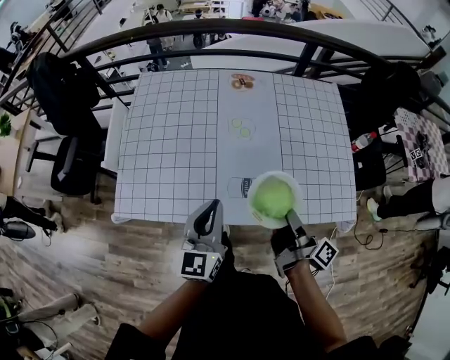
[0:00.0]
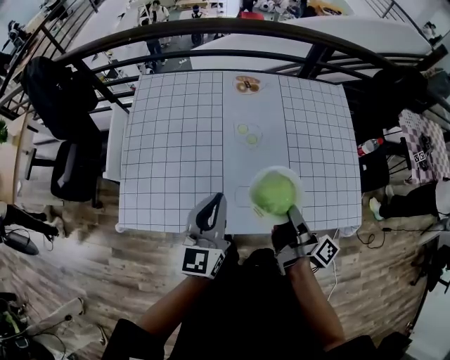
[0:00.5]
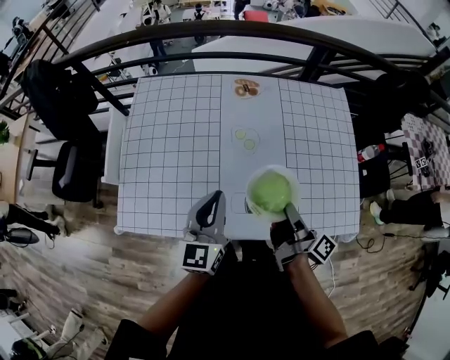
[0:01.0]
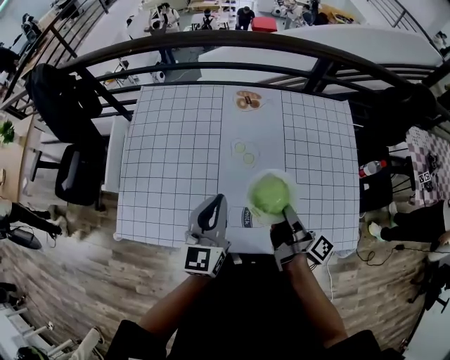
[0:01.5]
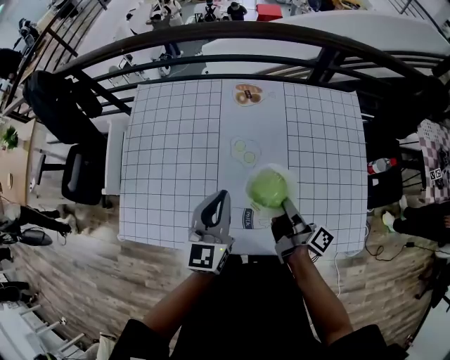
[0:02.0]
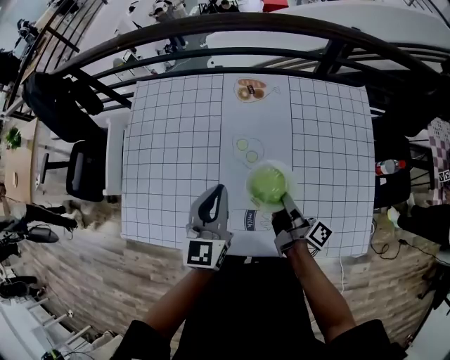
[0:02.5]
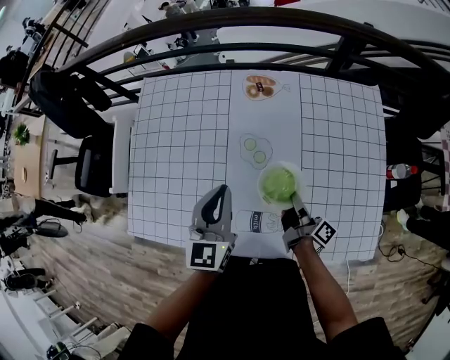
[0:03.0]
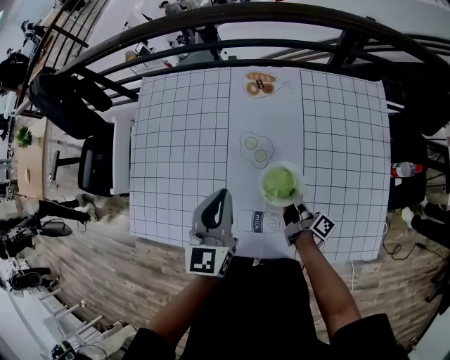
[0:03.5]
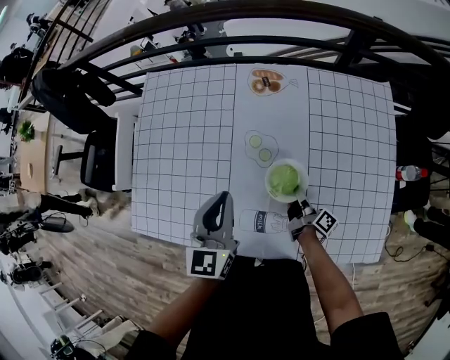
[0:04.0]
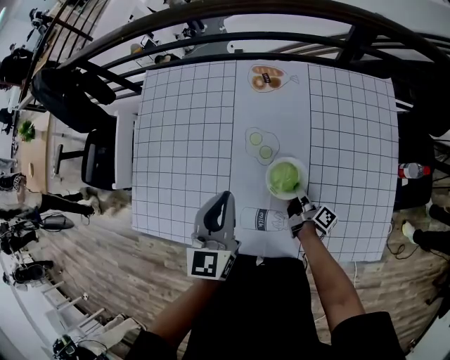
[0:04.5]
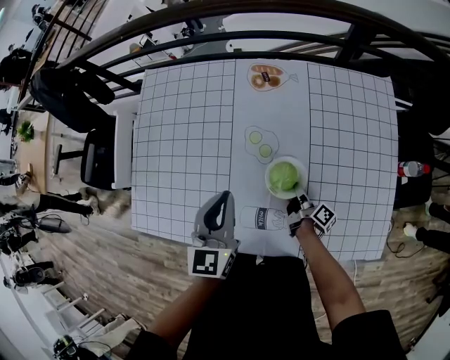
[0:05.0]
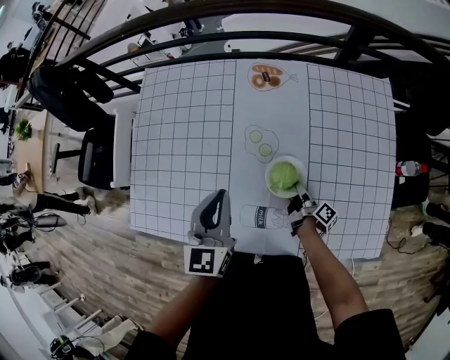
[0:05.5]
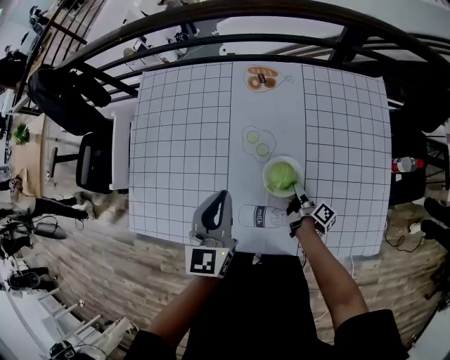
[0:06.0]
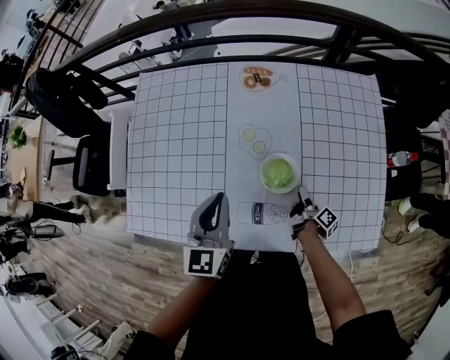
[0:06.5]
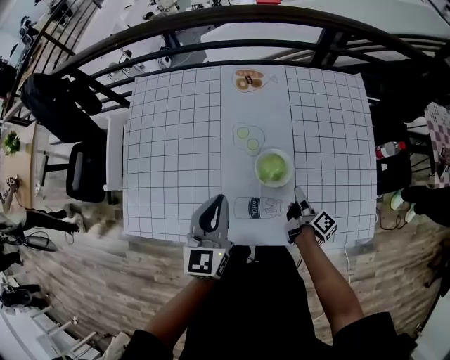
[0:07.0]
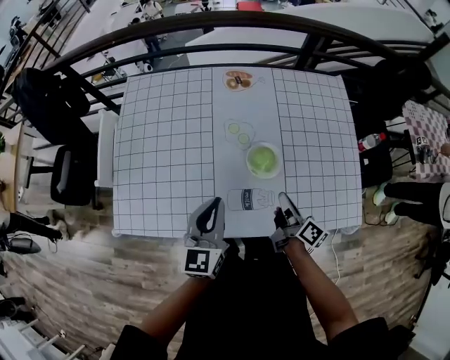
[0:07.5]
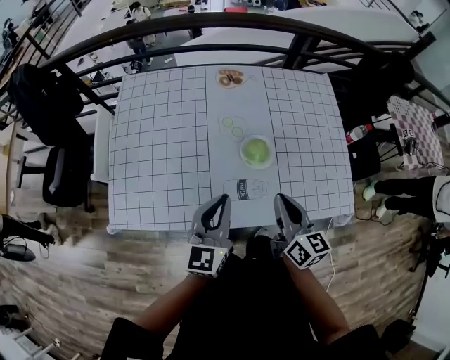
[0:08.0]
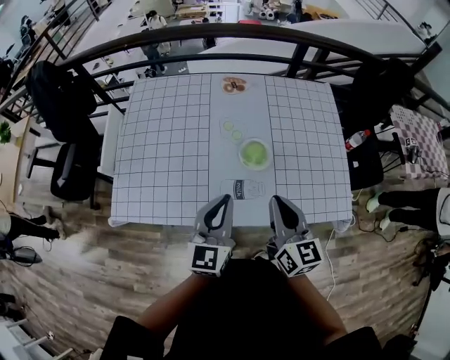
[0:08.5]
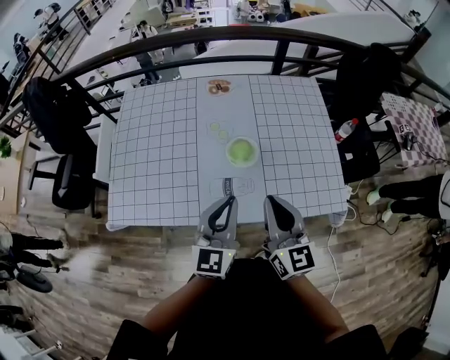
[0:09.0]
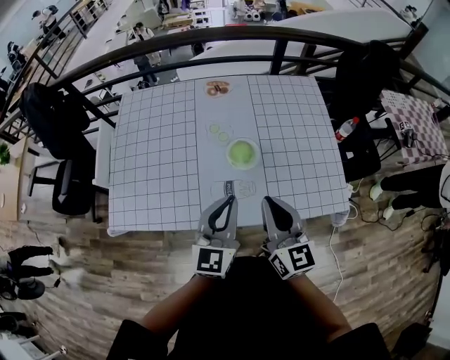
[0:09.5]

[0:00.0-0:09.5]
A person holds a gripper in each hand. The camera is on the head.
0:00.0 to 0:02.0: The left gripper ends up approximately 20 cm from where it was.
0:05.5 to 0:07.5: The left gripper shifts by approximately 10 cm.
0:07.5 to 0:09.5: The left gripper ends up roughly 15 cm from where it was.

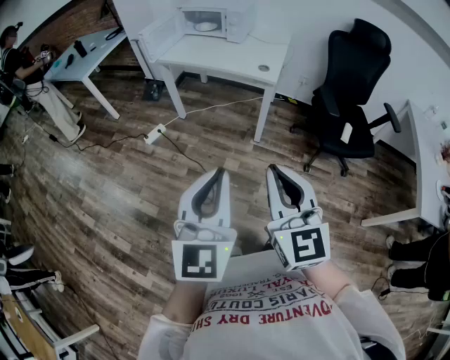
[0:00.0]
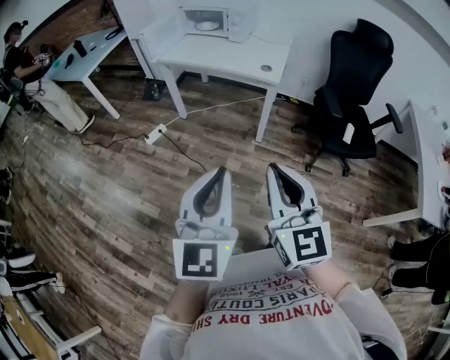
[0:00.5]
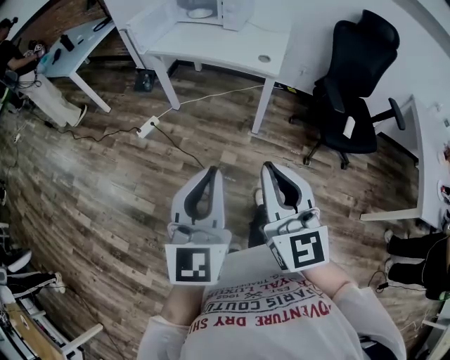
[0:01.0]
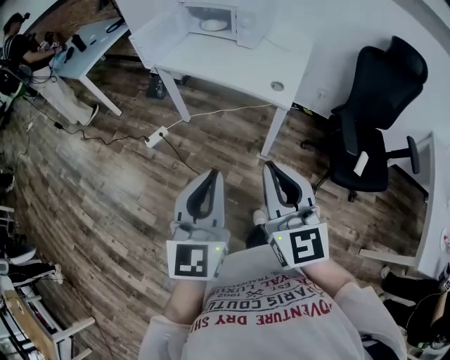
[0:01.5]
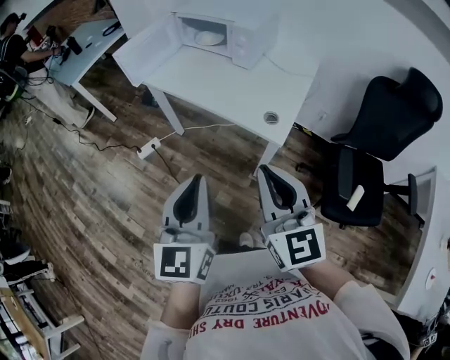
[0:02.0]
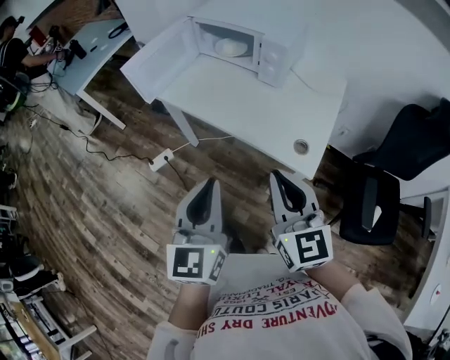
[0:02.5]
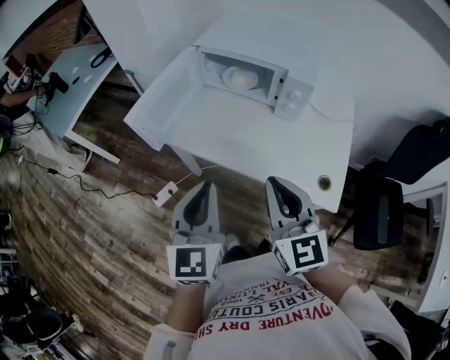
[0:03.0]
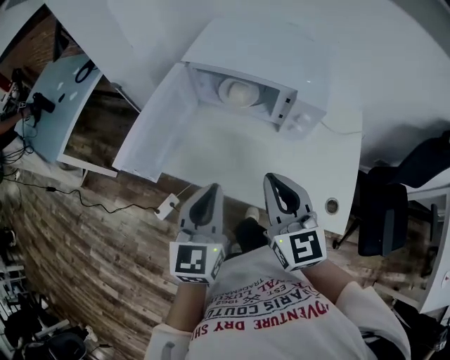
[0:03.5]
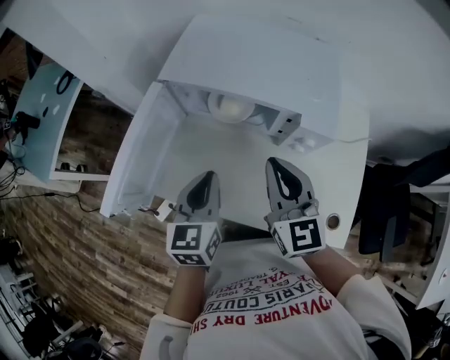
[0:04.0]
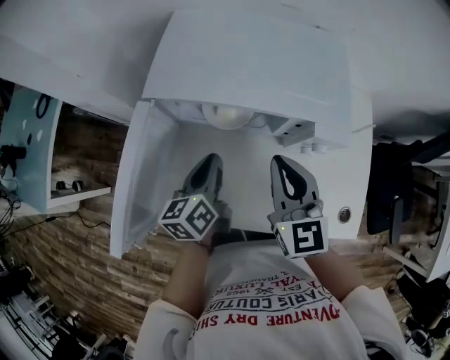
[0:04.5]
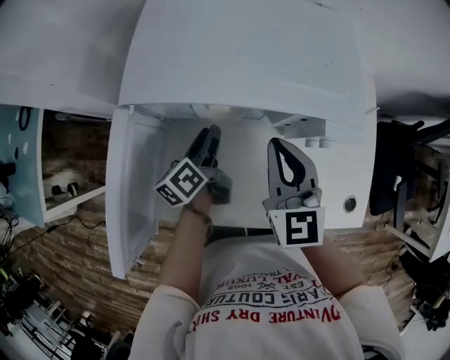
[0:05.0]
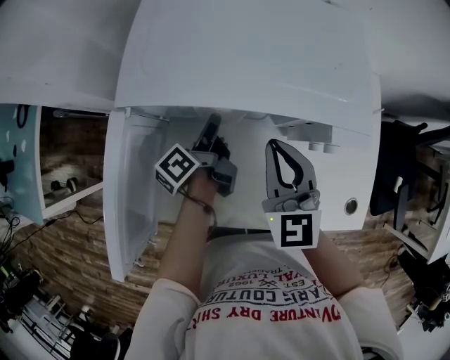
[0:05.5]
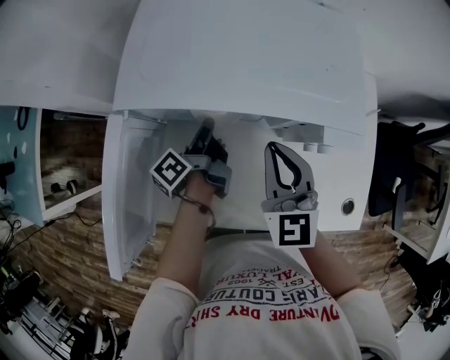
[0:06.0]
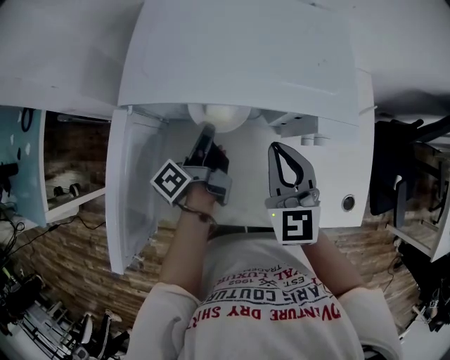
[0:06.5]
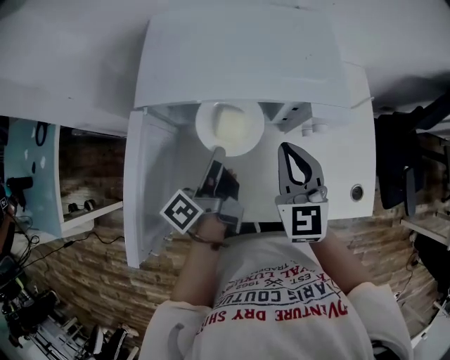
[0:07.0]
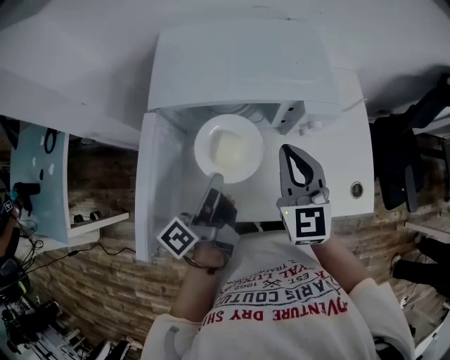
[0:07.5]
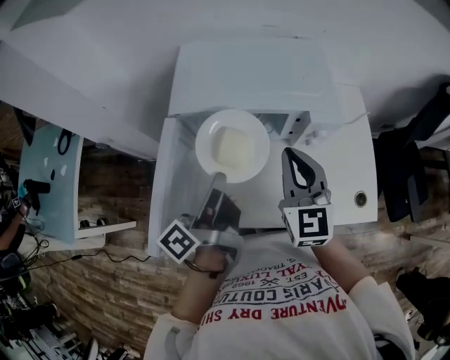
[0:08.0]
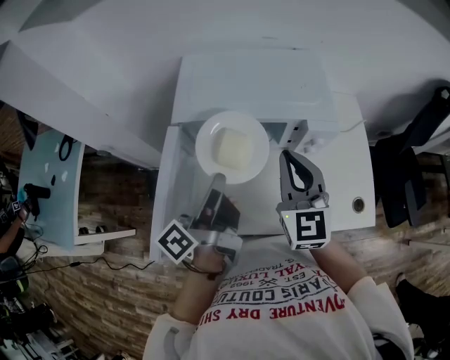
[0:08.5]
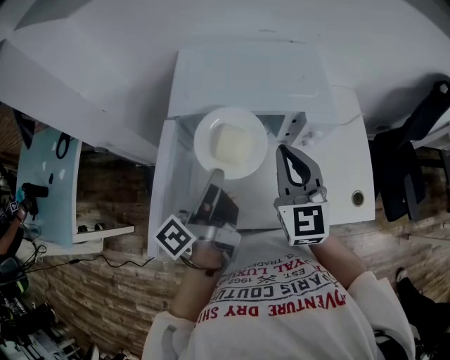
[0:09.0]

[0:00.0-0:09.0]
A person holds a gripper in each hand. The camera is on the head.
0:00.0 to 0:02.0: The pair of grippers is taken forward, about 40 cm.
0:02.0 to 0:04.5: The pair of grippers is taken approximately 70 cm. The right gripper rotates roughly 30 degrees; the left gripper changes its angle by approximately 40 degrees.
0:04.5 to 0:07.0: The left gripper travels downward and back again, about 10 cm each way, rotates approximately 40 degrees, and opens and closes again.
0:07.0 to 0:09.0: The left gripper goes roughly 15 cm upward and backward, while the right gripper moves upward, about 10 cm.

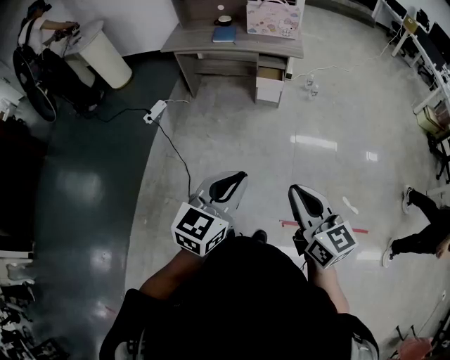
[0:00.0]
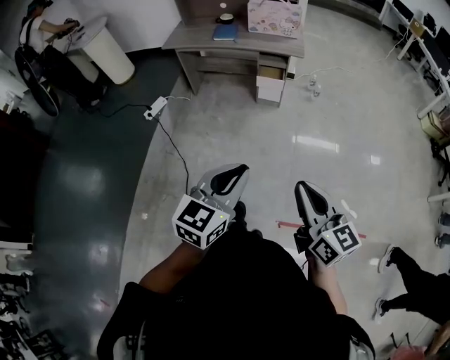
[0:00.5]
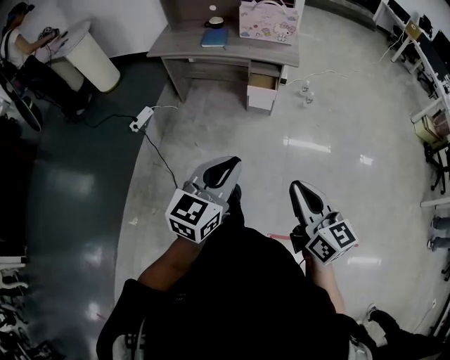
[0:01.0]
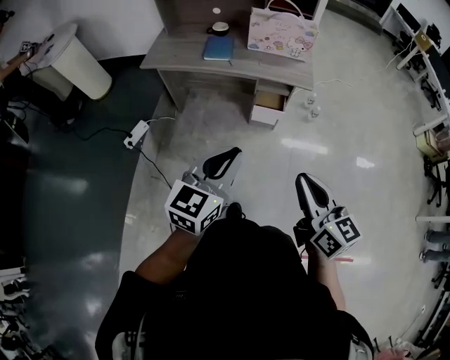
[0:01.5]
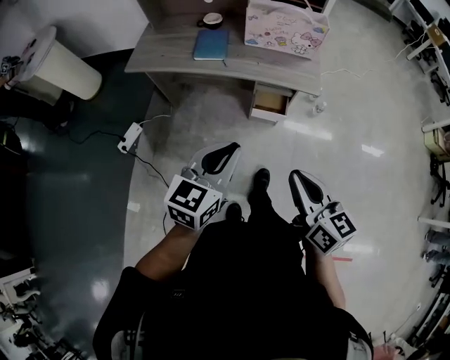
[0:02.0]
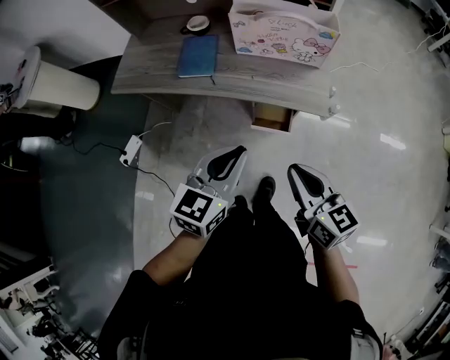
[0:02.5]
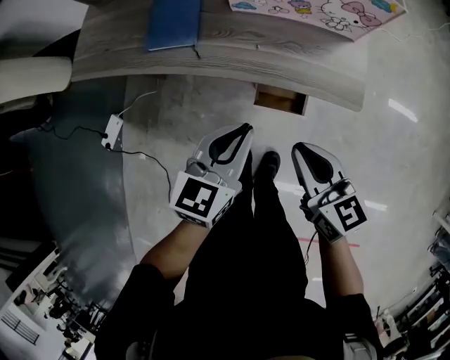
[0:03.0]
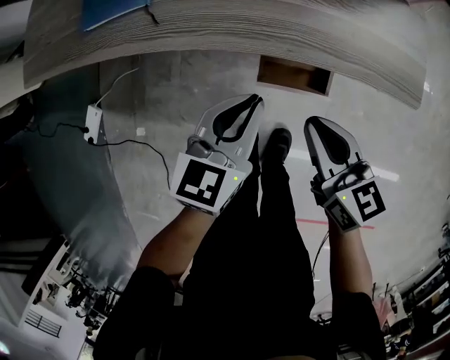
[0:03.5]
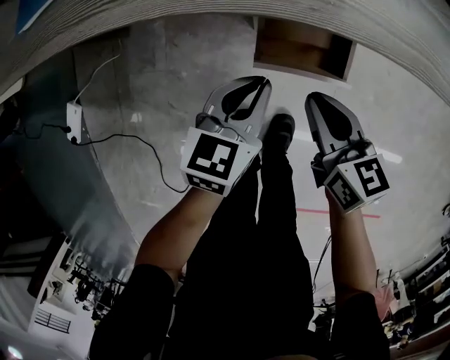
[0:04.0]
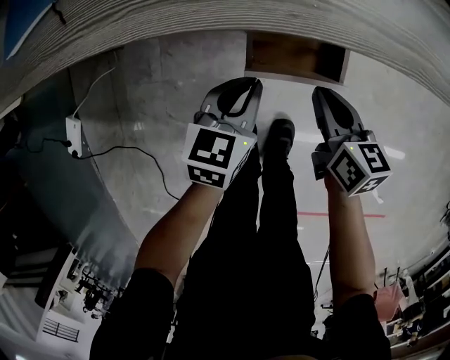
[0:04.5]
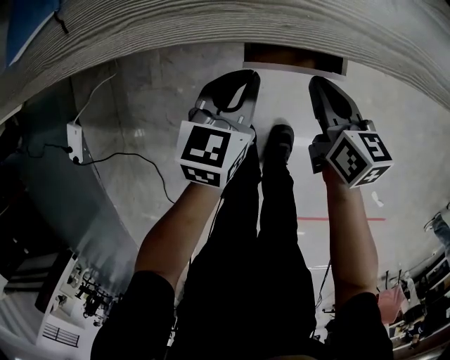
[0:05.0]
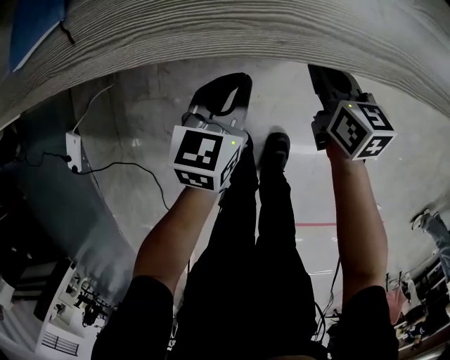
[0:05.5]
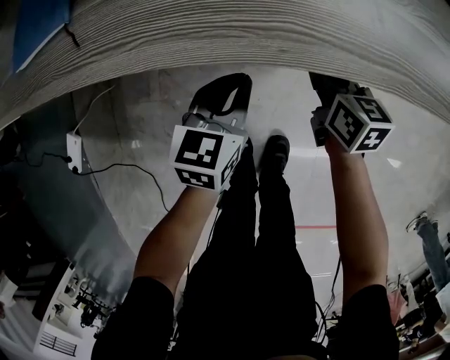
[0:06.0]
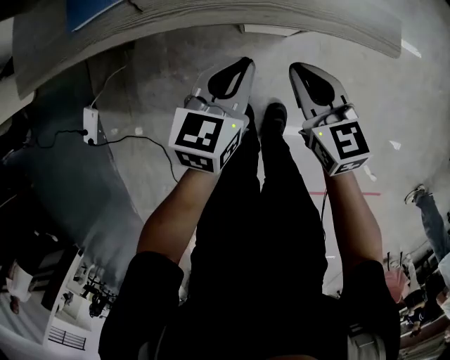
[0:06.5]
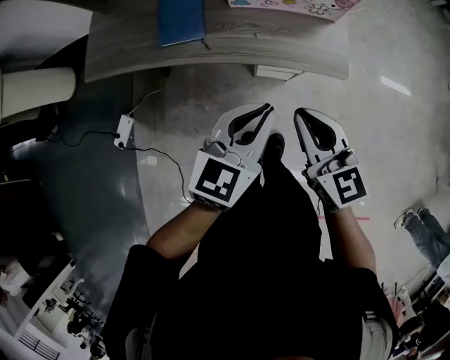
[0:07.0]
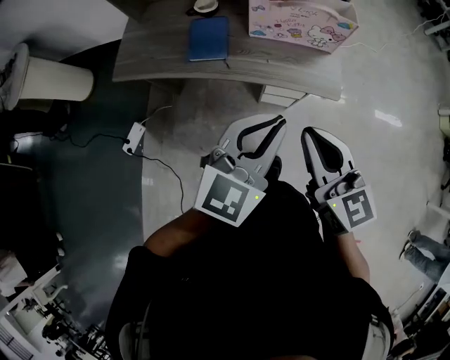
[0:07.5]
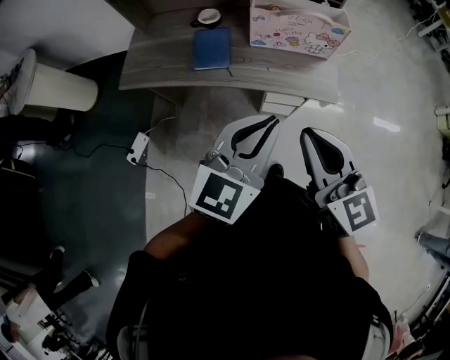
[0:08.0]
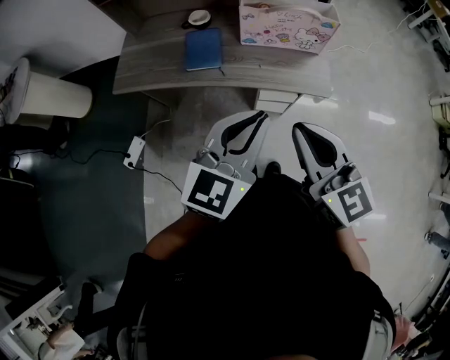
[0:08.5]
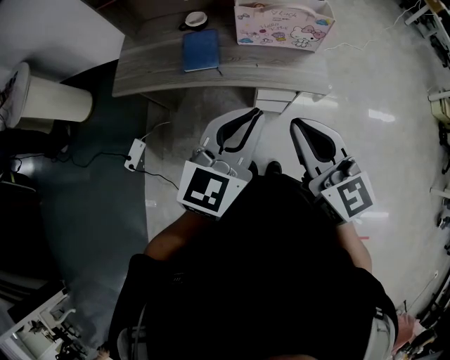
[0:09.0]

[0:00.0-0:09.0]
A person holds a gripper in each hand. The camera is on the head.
0:00.0 to 0:02.0: The pair of grippers is taken forward, about 50 cm.
0:02.0 to 0:04.5: Both grippers travel together downward and forward, approximately 60 cm. The left gripper rotates about 20 degrees. Meanwhile the right gripper turns by approximately 30 degrees.
0:04.5 to 0:07.0: Both grippers move upward, approximately 50 cm. The right gripper changes its angle by roughly 40 degrees, while the left gripper swivels approximately 20 degrees.
0:07.0 to 0:09.0: The grippers both shift upward and backward by roughly 20 cm.
